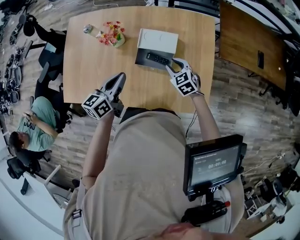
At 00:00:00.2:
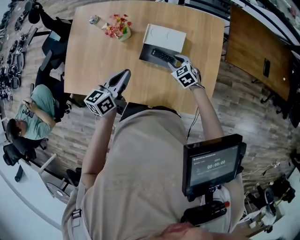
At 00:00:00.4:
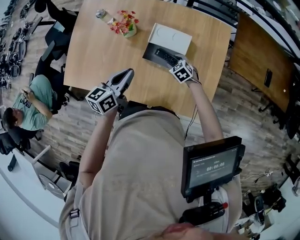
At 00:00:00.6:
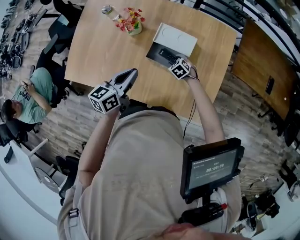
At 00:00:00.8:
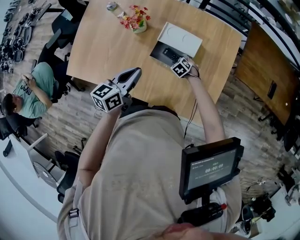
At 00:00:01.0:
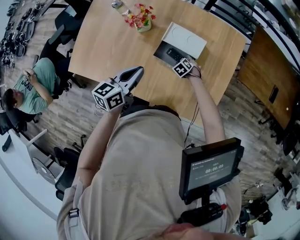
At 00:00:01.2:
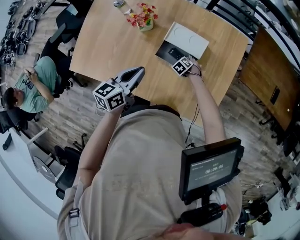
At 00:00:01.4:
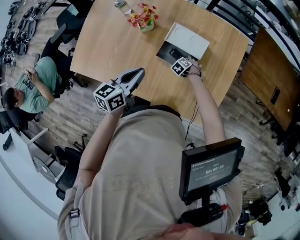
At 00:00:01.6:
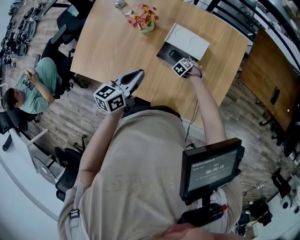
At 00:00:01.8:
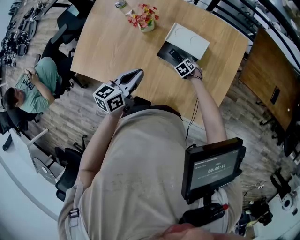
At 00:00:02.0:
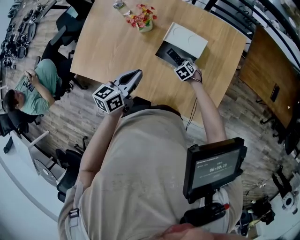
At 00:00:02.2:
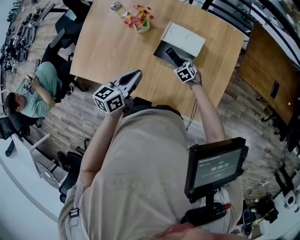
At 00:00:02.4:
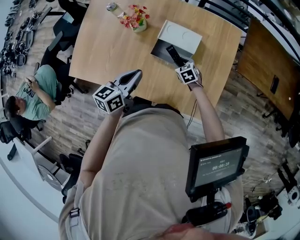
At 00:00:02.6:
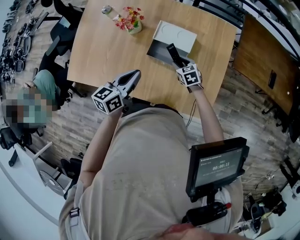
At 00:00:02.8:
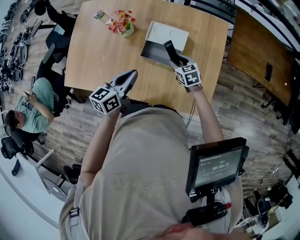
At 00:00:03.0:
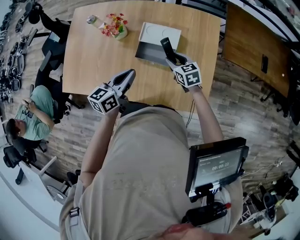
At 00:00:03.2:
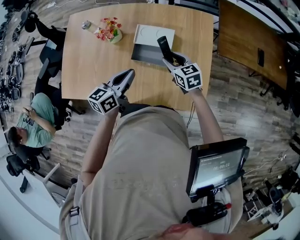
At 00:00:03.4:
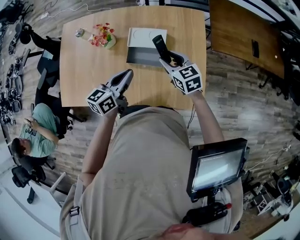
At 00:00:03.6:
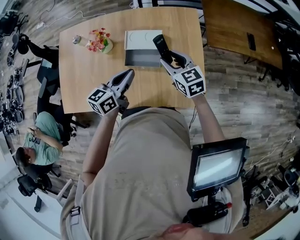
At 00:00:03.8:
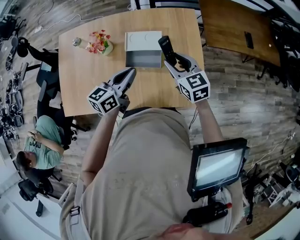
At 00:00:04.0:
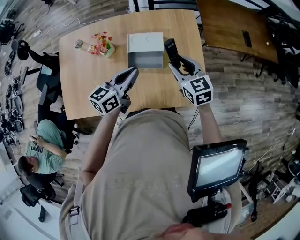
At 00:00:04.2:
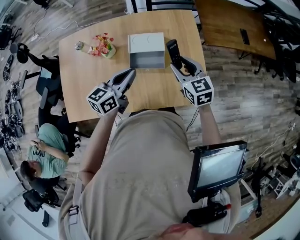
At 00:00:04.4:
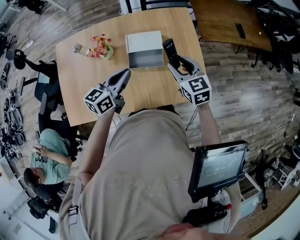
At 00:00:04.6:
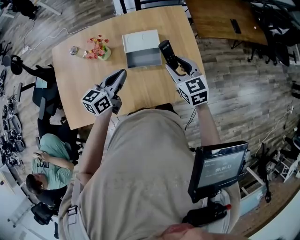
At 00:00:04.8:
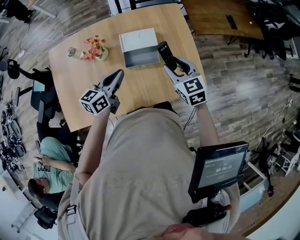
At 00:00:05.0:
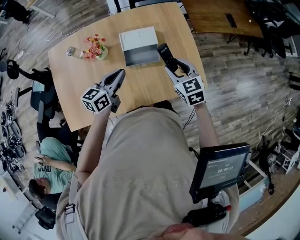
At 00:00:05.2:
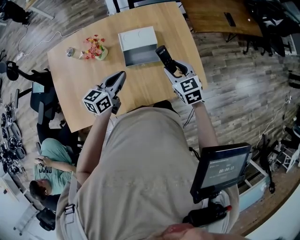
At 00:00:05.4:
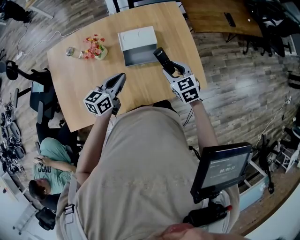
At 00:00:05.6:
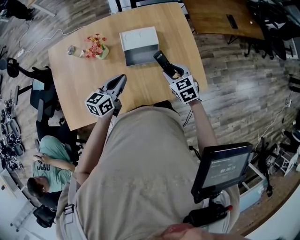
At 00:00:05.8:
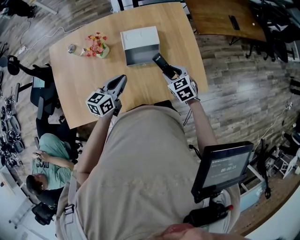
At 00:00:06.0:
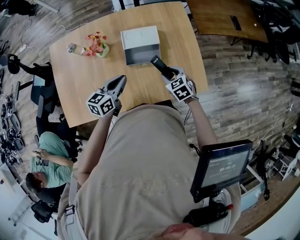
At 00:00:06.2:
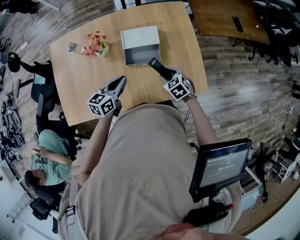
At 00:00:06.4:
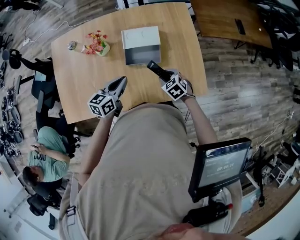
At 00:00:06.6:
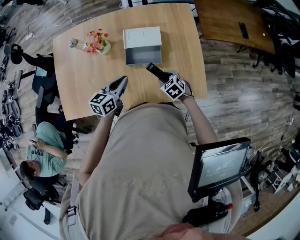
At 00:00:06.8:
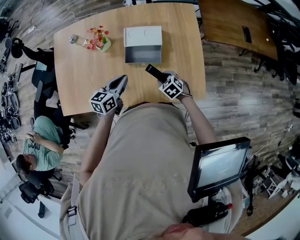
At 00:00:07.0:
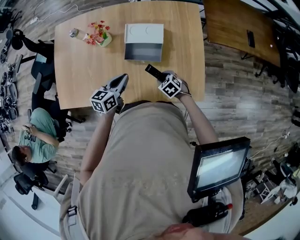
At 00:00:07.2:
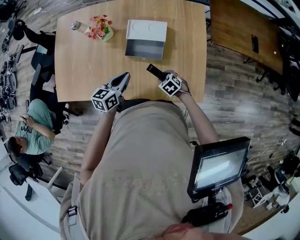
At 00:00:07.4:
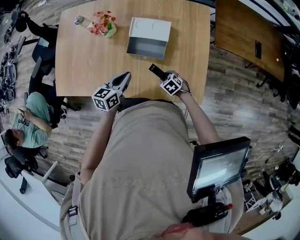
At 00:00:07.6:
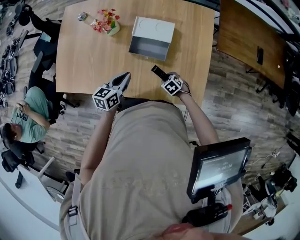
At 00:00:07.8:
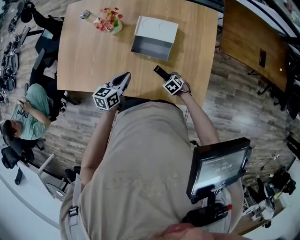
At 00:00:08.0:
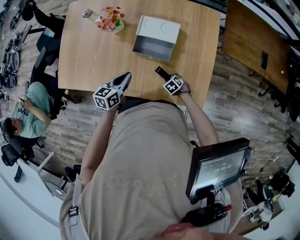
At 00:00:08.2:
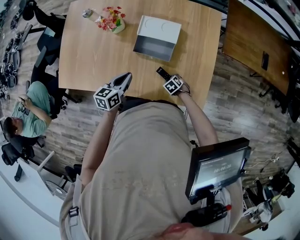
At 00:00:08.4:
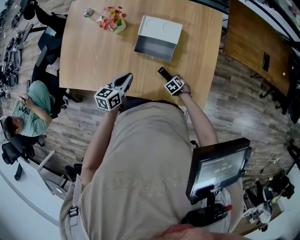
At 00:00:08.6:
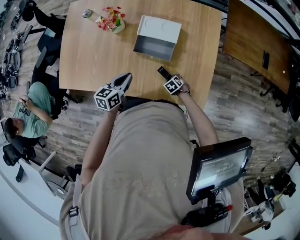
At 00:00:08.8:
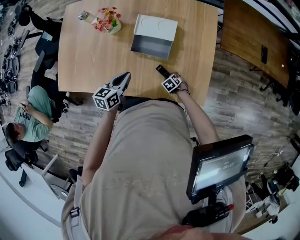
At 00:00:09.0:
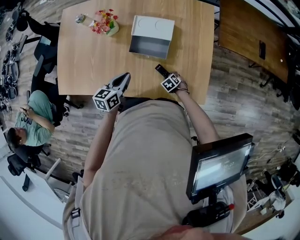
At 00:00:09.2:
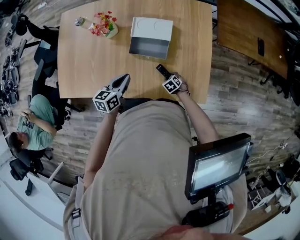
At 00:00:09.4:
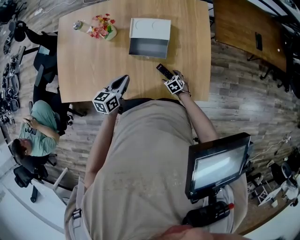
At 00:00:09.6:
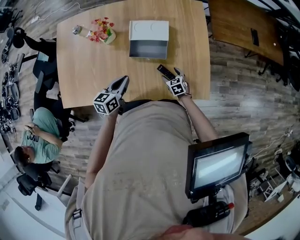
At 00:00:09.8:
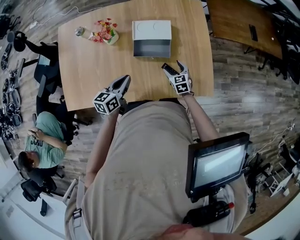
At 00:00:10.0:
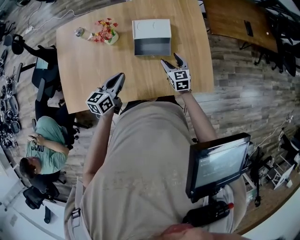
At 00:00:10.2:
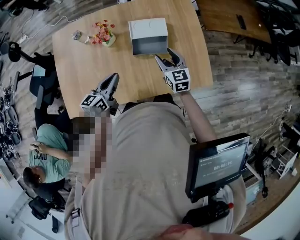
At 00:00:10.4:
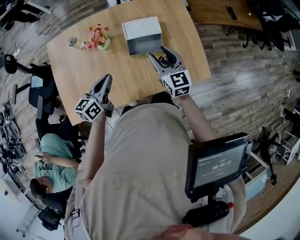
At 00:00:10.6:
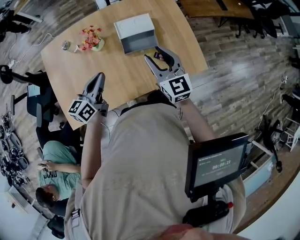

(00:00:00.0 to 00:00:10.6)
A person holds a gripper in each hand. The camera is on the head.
00:00:00.0 - 00:00:01.6: The right gripper travels downward by about 25 cm, and tips its fingers downward by approximately 30 degrees.
00:00:01.6 - 00:00:03.0: The left gripper changes place by roughly 5 cm. Meanwhile the right gripper heads upward, covering about 25 cm, and points its fingers some 40 degrees further upward.
00:00:03.0 - 00:00:04.6: The left gripper changes place by about 5 cm, and rotates roughly 20 degrees. Meanwhile the right gripper travels upward by roughly 15 cm, and swivels about 30 degrees.
00:00:04.6 - 00:00:06.0: The left gripper travels downward by about 5 cm. The right gripper travels downward by roughly 15 cm, and changes its angle by roughly 20 degrees.
00:00:06.0 - 00:00:07.6: The left gripper travels downward by some 5 cm, and changes its angle by approximately 20 degrees, while the right gripper heads downward, covering roughly 20 cm, and turns by roughly 30 degrees.
00:00:07.6 - 00:00:09.0: The right gripper goes roughly 10 cm downward.
00:00:09.0 - 00:00:10.6: The left gripper ends up roughly 20 cm from where it was, and swivels some 30 degrees, while the right gripper goes some 50 cm upward, points its fingers approximately 60 degrees further upward, and opens, then closes again.

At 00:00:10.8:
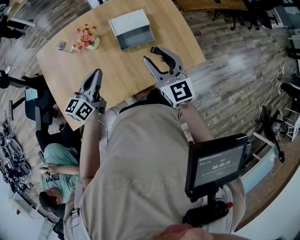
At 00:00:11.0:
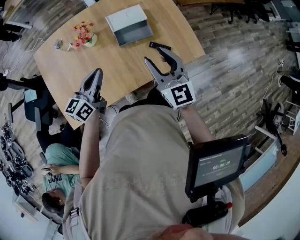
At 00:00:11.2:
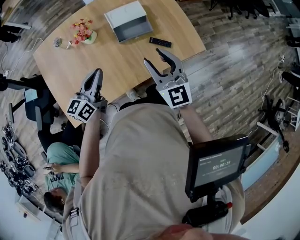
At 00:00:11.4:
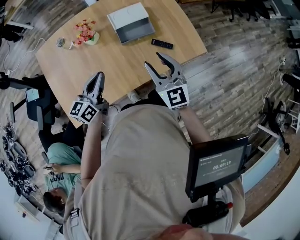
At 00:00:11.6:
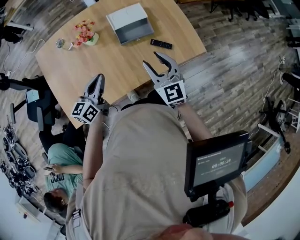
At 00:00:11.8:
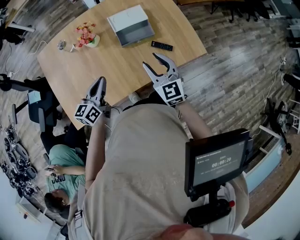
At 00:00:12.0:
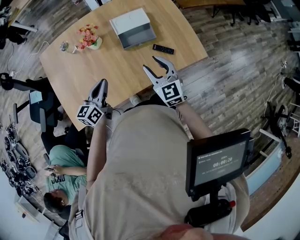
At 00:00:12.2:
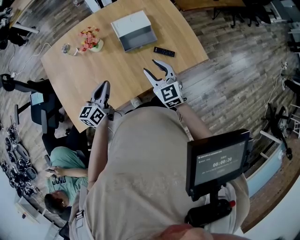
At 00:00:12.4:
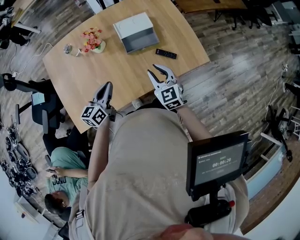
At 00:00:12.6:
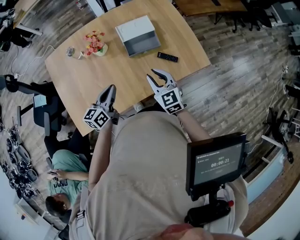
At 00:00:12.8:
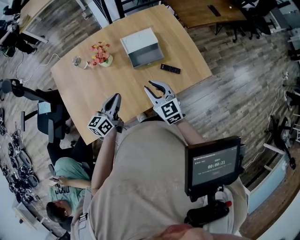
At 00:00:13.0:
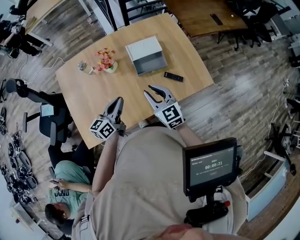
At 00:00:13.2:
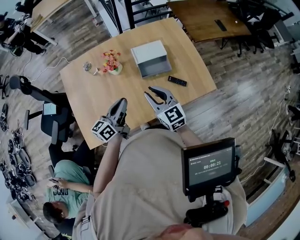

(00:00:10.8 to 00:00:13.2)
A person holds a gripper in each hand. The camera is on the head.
00:00:10.8 - 00:00:12.0: The left gripper is displaced downward and backward by roughly 10 cm. The right gripper travels downward by about 10 cm.
00:00:12.0 - 00:00:13.2: The right gripper heads to the left, covering about 10 cm. The left gripper goes roughly 5 cm upward.

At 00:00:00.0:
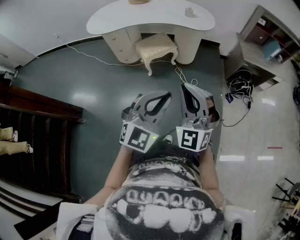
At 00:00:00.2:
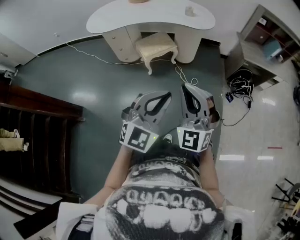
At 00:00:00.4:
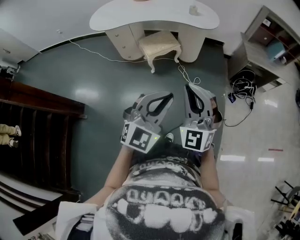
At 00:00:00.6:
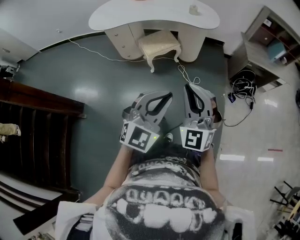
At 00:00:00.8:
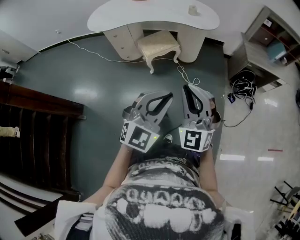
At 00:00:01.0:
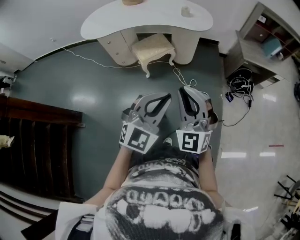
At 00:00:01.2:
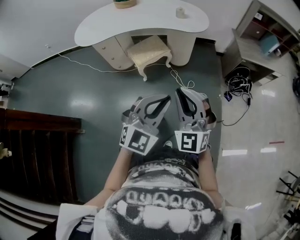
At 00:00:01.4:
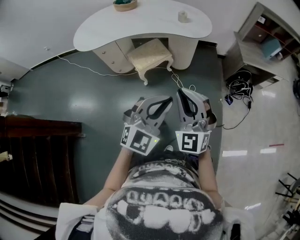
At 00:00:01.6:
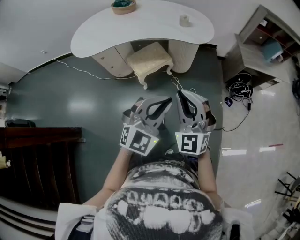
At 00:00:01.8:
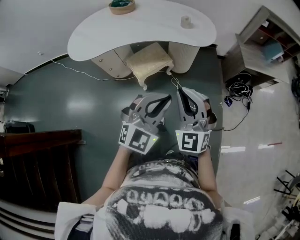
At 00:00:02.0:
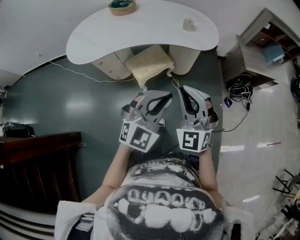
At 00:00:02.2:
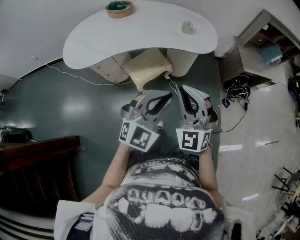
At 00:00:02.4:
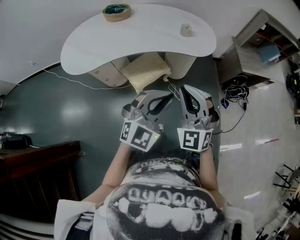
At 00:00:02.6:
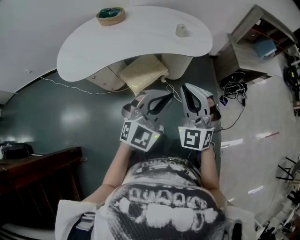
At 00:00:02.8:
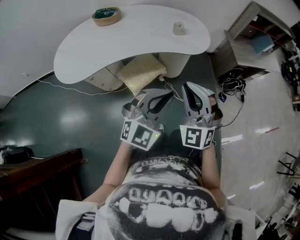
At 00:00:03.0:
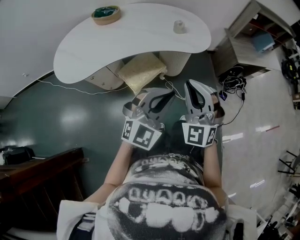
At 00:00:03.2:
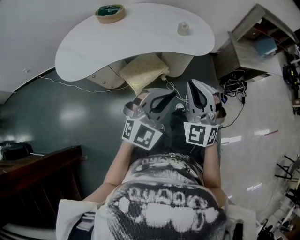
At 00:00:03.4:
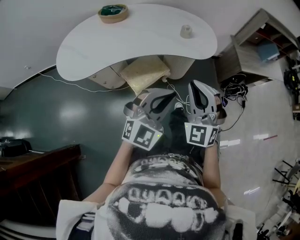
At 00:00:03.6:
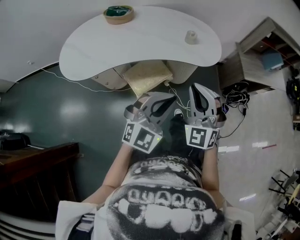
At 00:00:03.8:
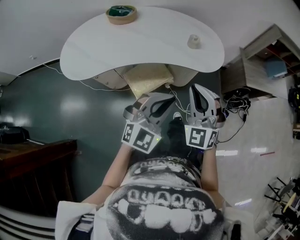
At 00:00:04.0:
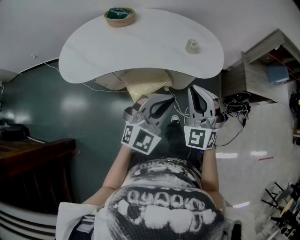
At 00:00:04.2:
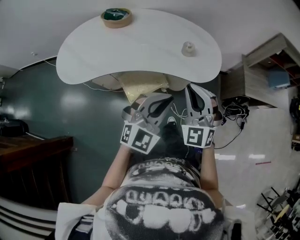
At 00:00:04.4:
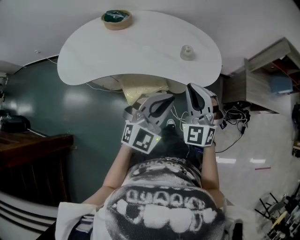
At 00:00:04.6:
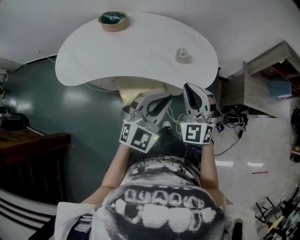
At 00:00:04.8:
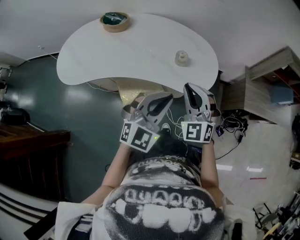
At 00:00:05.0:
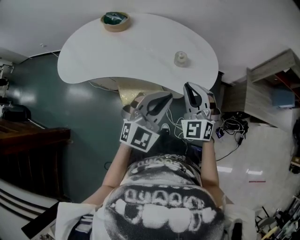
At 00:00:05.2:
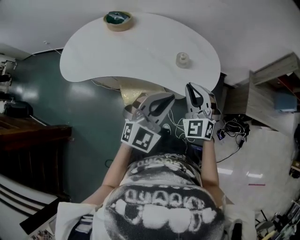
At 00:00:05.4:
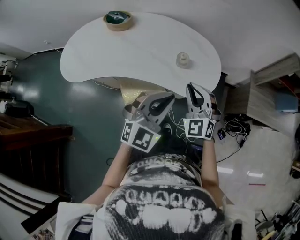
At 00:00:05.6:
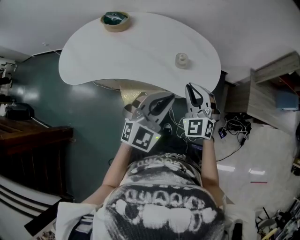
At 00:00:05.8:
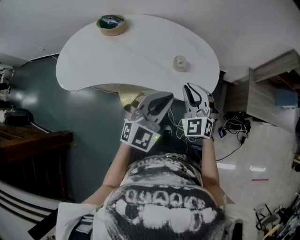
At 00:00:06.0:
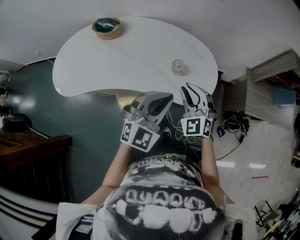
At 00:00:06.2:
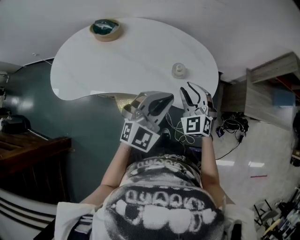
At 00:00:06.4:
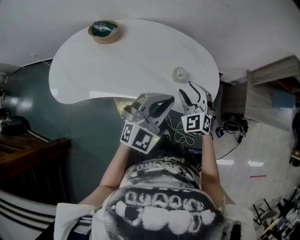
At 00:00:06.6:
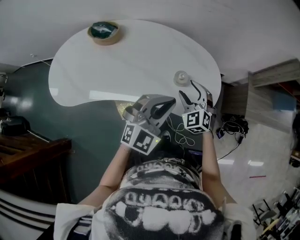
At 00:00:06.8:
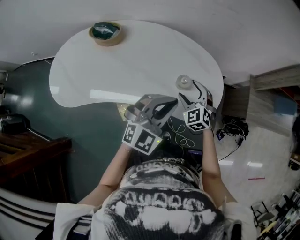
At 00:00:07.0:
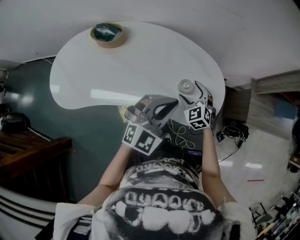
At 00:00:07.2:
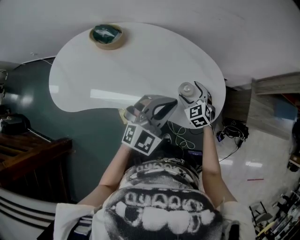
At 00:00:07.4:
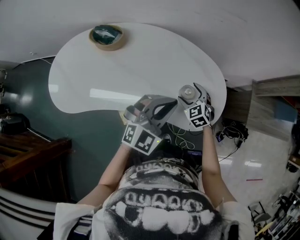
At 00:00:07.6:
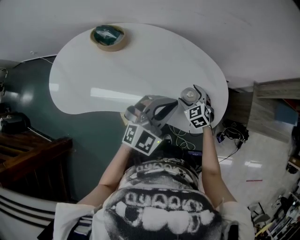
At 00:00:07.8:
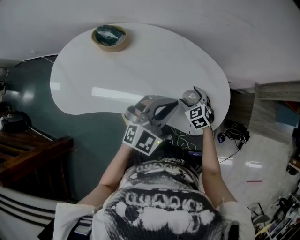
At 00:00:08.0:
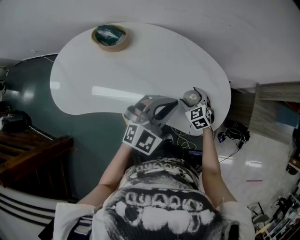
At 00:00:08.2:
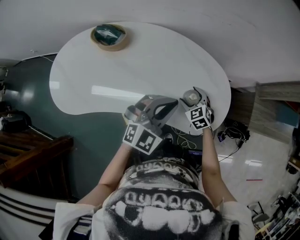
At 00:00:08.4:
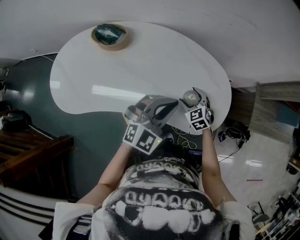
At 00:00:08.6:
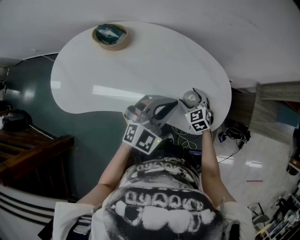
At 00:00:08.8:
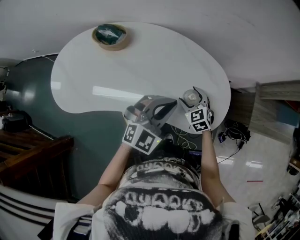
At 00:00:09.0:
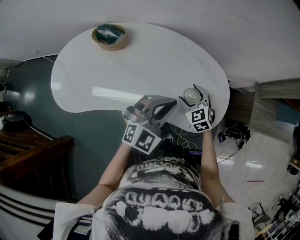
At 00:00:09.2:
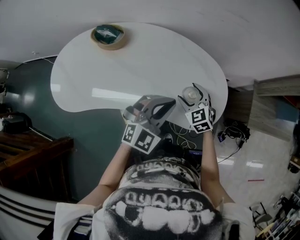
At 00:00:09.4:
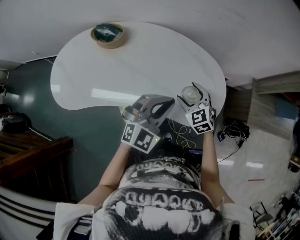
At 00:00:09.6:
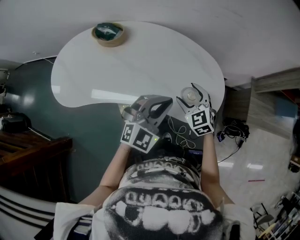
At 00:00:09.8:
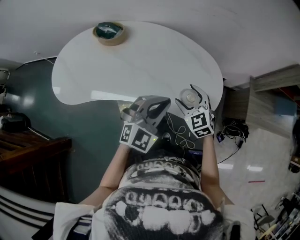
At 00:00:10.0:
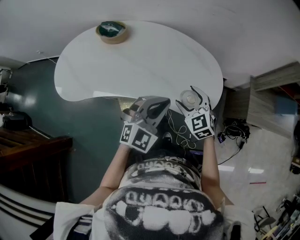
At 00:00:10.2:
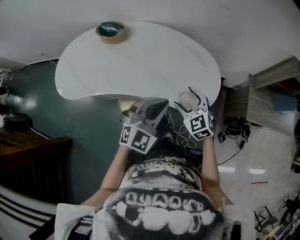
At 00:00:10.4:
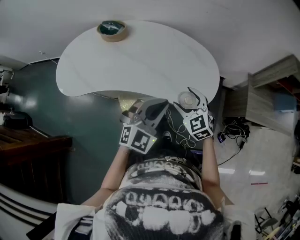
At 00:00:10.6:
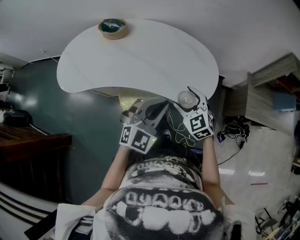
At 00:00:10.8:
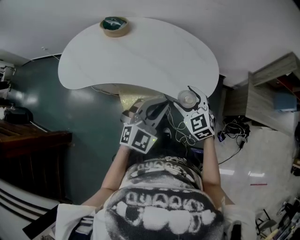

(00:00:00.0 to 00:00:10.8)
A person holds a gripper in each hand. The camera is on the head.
00:00:00.0 - 00:00:01.6: The grippers both shift forward by about 20 cm.
00:00:01.6 - 00:00:03.0: The two grippers go roughly 20 cm forward and to the left.
00:00:03.0 - 00:00:04.6: The grippers both shift forward by approximately 25 cm.
00:00:04.6 - 00:00:06.2: The right gripper travels forward and downward by about 15 cm. Meanwhile the left gripper heads forward, covering some 15 cm.
00:00:06.2 - 00:00:07.8: The right gripper is displaced downward and forward by roughly 20 cm, changes its angle by roughly 30 degrees, and opens its fingers. Meanwhile the left gripper travels forward and to the left by approximately 15 cm.
00:00:07.8 - 00:00:09.2: The right gripper moves upward, some 10 cm.
00:00:09.2 - 00:00:10.8: The left gripper shifts roughly 20 cm backward, while the right gripper is displaced backward and upward by about 20 cm.
